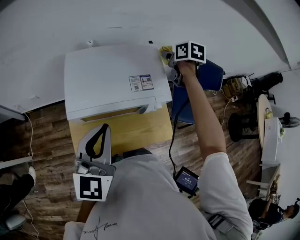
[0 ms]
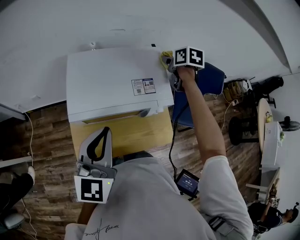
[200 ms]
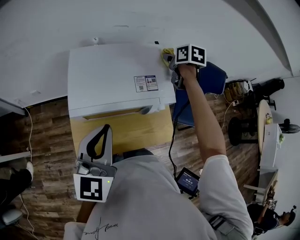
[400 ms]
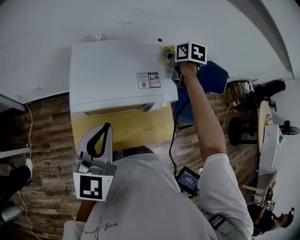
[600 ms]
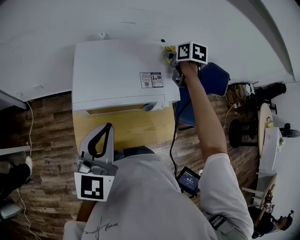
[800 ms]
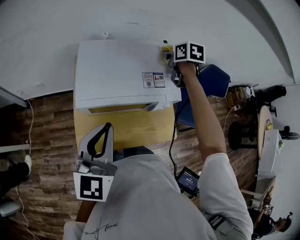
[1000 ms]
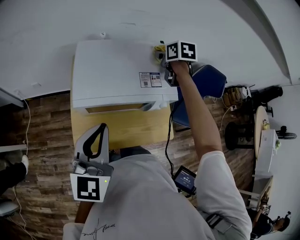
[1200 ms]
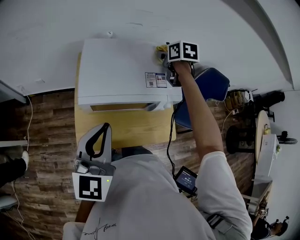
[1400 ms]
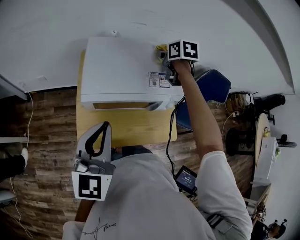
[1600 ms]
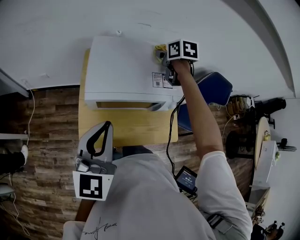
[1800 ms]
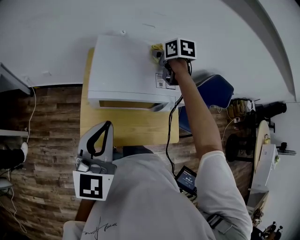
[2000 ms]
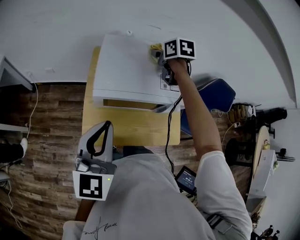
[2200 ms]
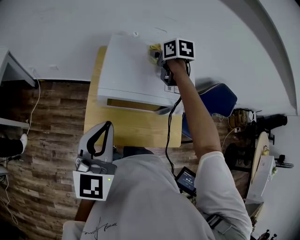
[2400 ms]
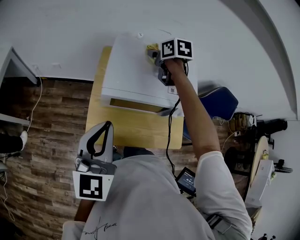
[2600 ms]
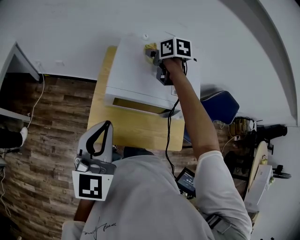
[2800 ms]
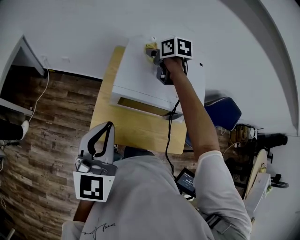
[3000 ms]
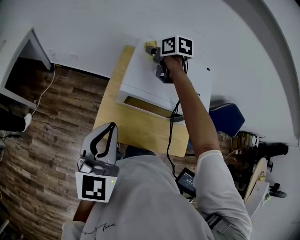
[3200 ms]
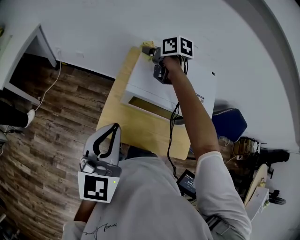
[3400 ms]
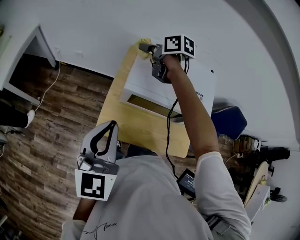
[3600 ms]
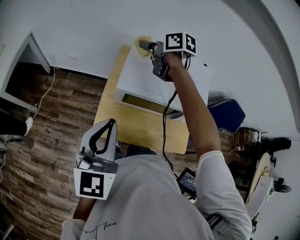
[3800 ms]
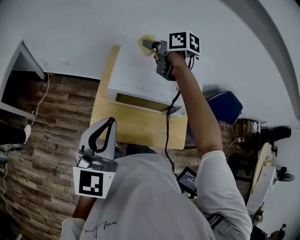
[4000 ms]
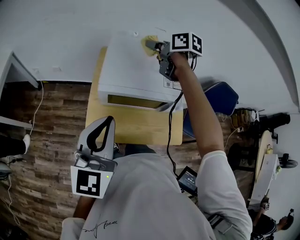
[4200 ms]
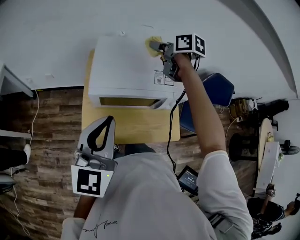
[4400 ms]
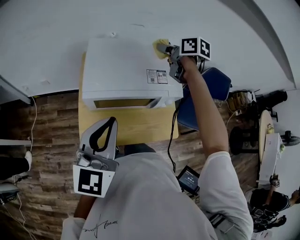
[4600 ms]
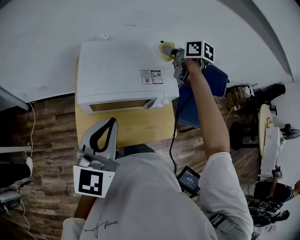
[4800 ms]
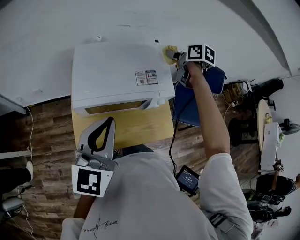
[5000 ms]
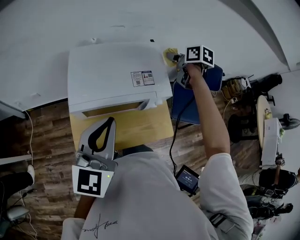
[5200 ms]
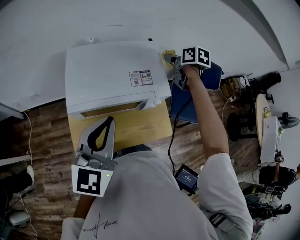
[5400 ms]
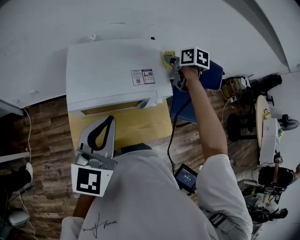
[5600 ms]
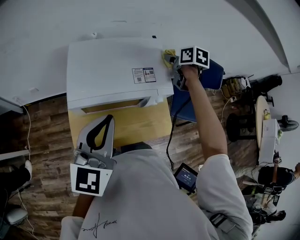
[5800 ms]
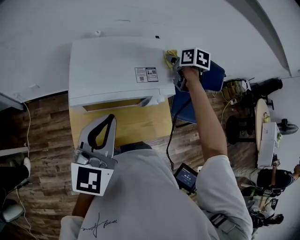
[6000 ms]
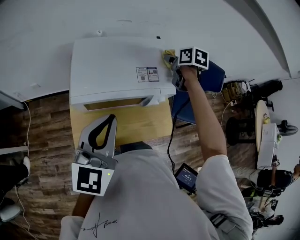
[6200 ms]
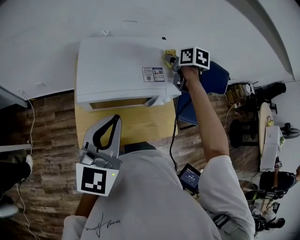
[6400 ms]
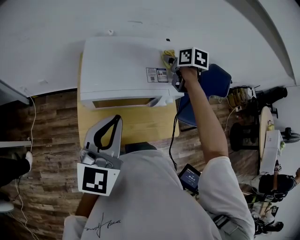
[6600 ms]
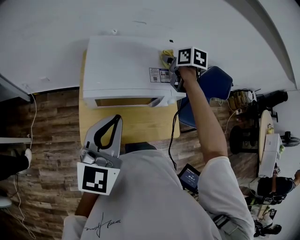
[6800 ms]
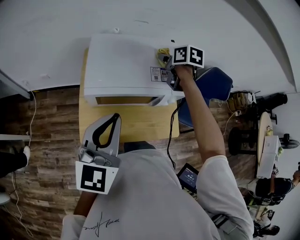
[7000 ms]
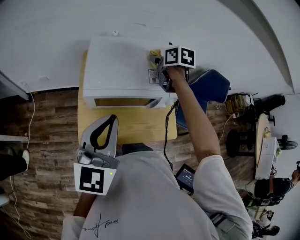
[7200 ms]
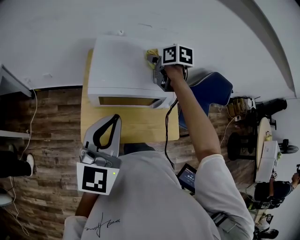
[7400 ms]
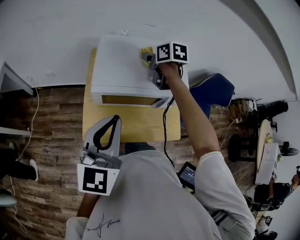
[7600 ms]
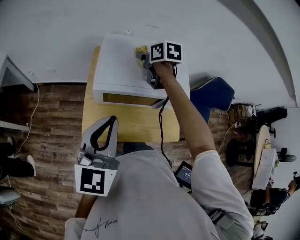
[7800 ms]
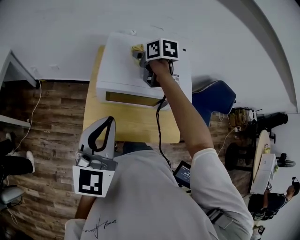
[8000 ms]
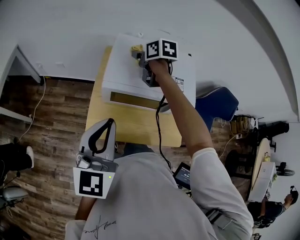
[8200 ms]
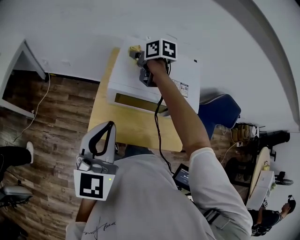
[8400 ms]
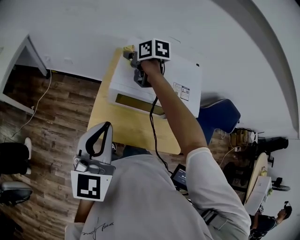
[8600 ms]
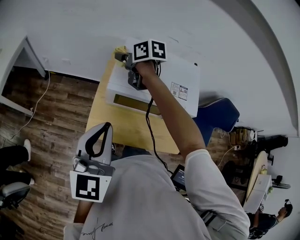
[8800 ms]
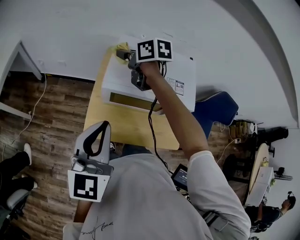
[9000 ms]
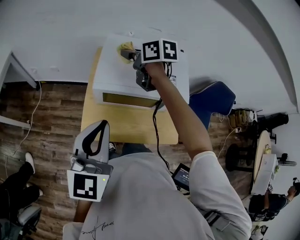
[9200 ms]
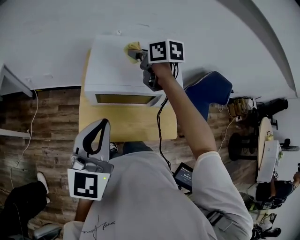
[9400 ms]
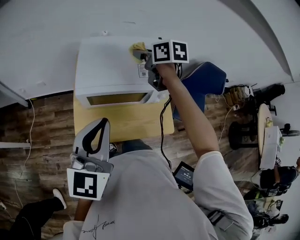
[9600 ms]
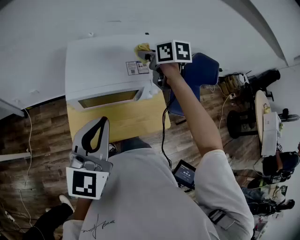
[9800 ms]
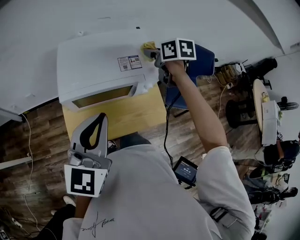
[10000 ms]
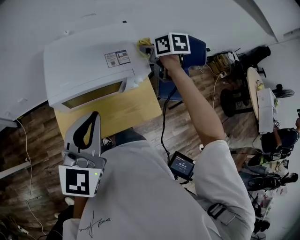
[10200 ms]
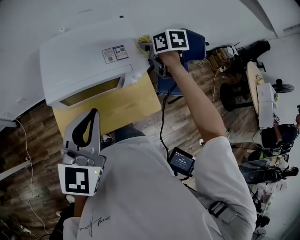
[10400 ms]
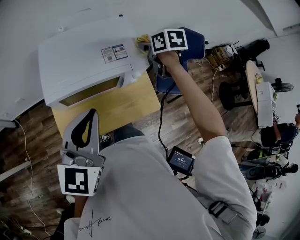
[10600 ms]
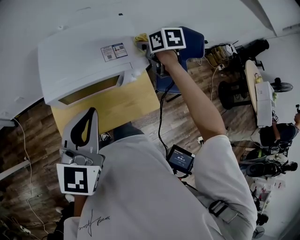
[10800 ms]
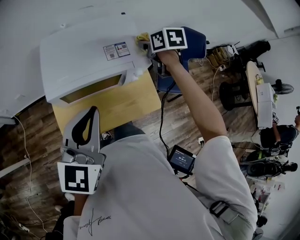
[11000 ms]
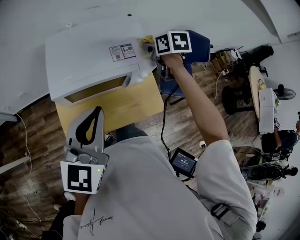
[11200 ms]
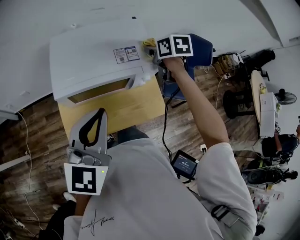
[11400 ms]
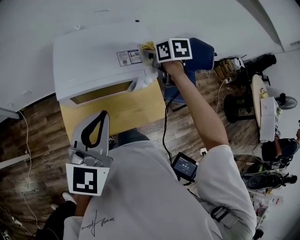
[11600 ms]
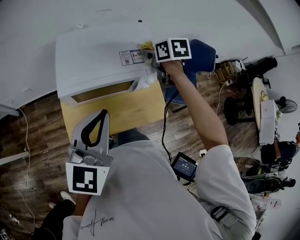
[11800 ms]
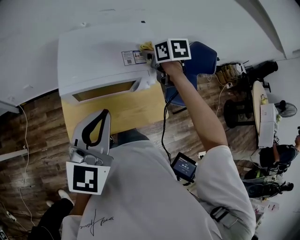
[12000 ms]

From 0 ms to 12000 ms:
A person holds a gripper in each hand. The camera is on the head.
From 0 ms to 1600 ms: The right gripper shifts roughly 10 cm to the left, while the left gripper goes approximately 5 cm to the left.
From 1600 ms to 3000 ms: The left gripper heads to the left, covering some 10 cm; the right gripper is displaced to the left by approximately 20 cm, and swivels approximately 20 degrees.
From 3000 ms to 4400 ms: The right gripper is displaced to the right, backward and upward by some 15 cm, while the left gripper shifts roughly 5 cm to the right.
From 4400 ms to 6000 ms: The left gripper goes some 5 cm to the right; the right gripper travels to the right by approximately 20 cm, and rotates approximately 30 degrees.
From 6000 ms to 7600 ms: The right gripper travels to the left by some 25 cm. Meanwhile the left gripper travels to the left and backward by approximately 10 cm.
From 7600 ms to 9000 ms: The right gripper heads to the left, covering roughly 20 cm, and changes its angle by approximately 20 degrees, while the left gripper travels to the left by about 5 cm.
From 9000 ms to 10400 ms: The right gripper changes place by roughly 40 cm, and turns by about 40 degrees; the left gripper shifts by some 15 cm, and changes its angle by approximately 30 degrees.
From 10400 ms to 12000 ms: The right gripper moves to the left, about 5 cm.

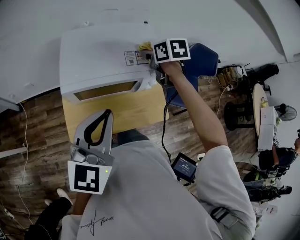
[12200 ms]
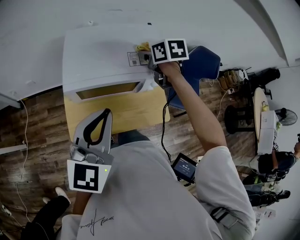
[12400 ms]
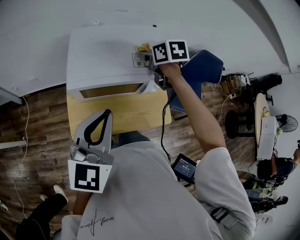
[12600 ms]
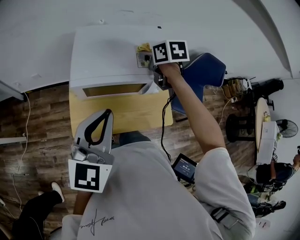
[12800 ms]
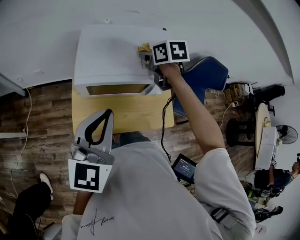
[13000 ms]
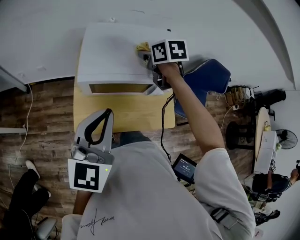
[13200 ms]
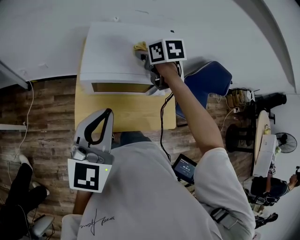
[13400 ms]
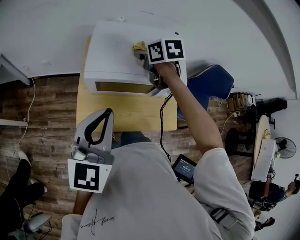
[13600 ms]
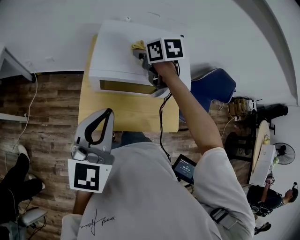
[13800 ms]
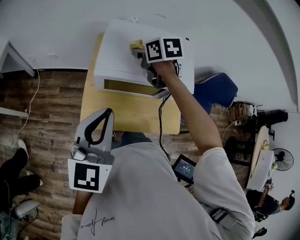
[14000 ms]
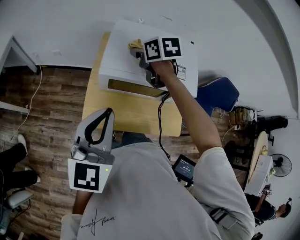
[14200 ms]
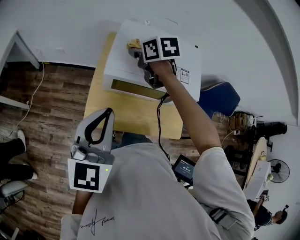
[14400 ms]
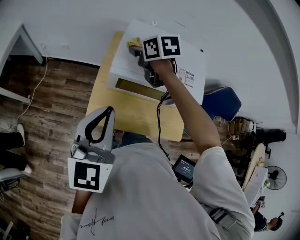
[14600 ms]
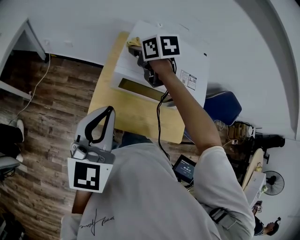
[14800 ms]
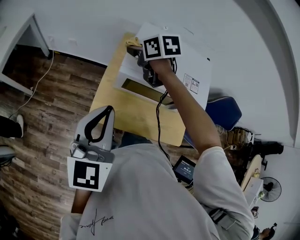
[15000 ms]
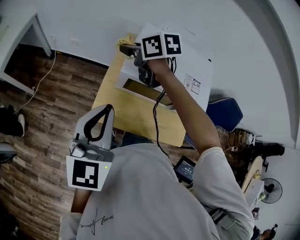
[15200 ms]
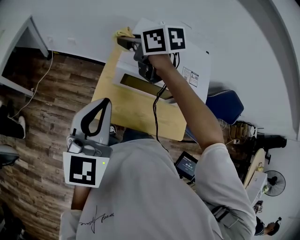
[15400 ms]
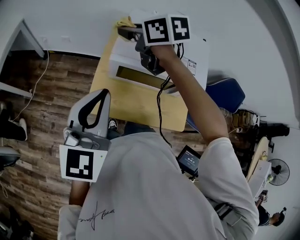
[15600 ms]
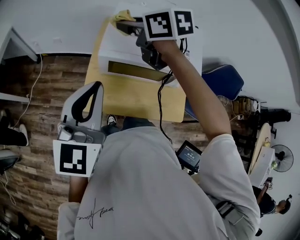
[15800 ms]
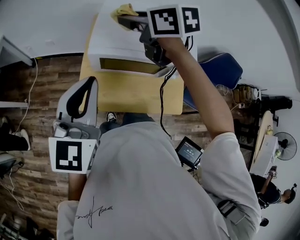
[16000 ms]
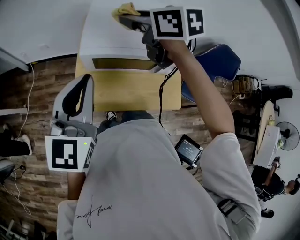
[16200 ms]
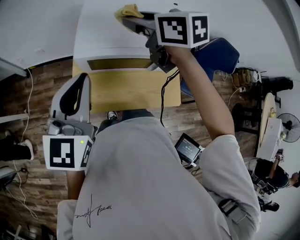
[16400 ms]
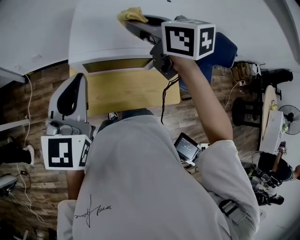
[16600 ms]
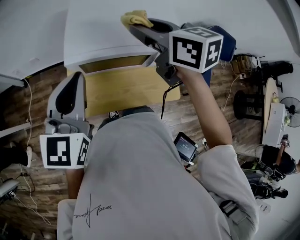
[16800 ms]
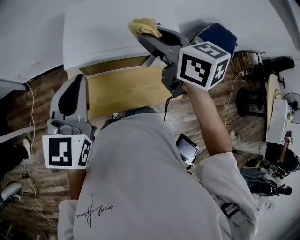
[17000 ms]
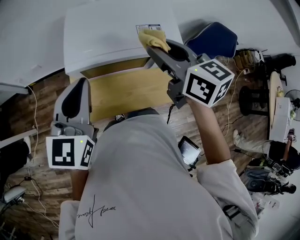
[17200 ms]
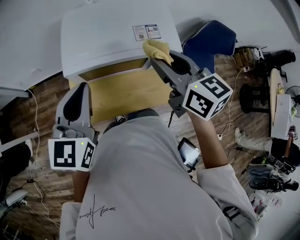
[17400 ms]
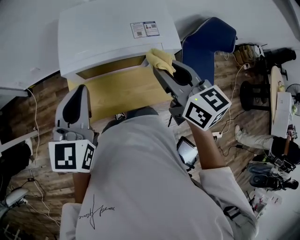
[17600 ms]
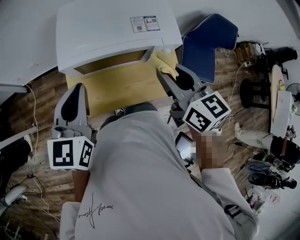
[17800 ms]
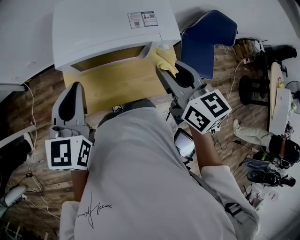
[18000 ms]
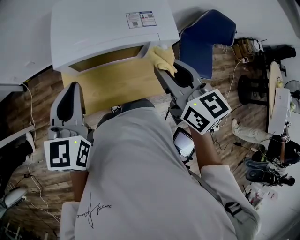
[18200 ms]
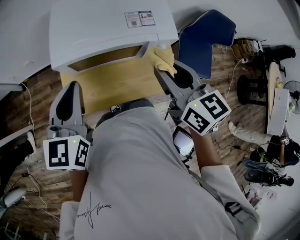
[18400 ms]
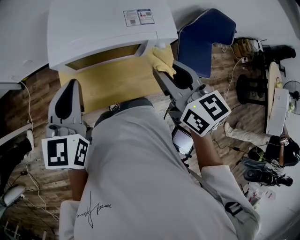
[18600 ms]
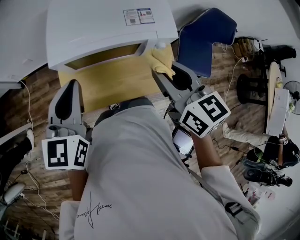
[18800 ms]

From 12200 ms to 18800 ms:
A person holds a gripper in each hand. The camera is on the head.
From 12200 ms to 13800 ms: The left gripper moves to the left, some 5 cm. The right gripper heads to the left, covering approximately 20 cm.
From 13800 ms to 15400 ms: The left gripper moves to the left, some 10 cm. Meanwhile the right gripper moves to the left, some 20 cm, and turns by some 30 degrees.
From 15400 ms to 17200 ms: The right gripper ends up approximately 30 cm from where it was, and turns by some 40 degrees, while the left gripper moves about 10 cm, and swivels roughly 20 degrees.
From 17200 ms to 18800 ms: The right gripper goes approximately 10 cm backward and downward.

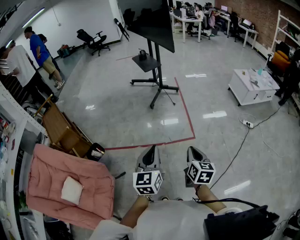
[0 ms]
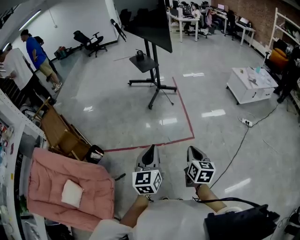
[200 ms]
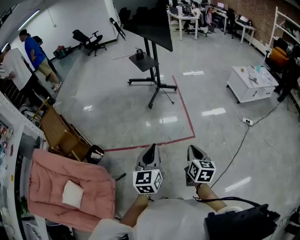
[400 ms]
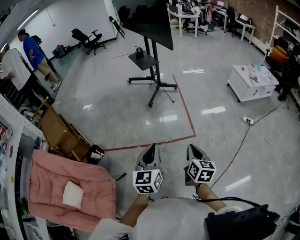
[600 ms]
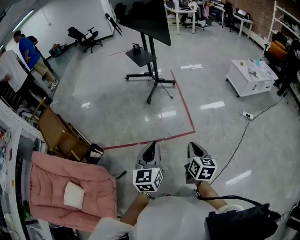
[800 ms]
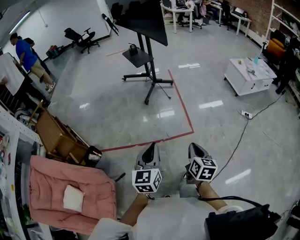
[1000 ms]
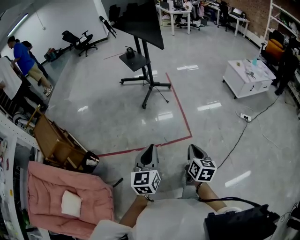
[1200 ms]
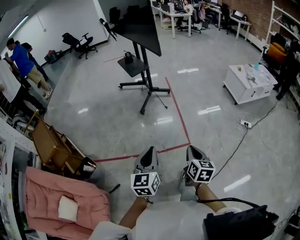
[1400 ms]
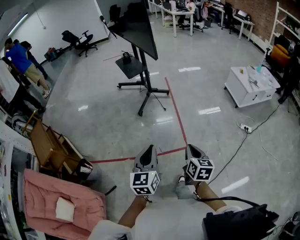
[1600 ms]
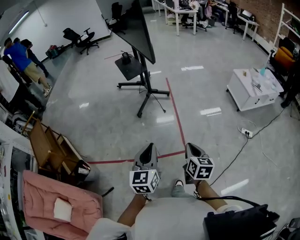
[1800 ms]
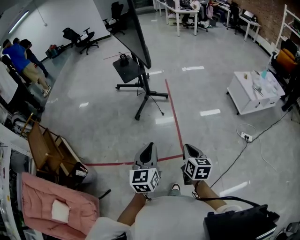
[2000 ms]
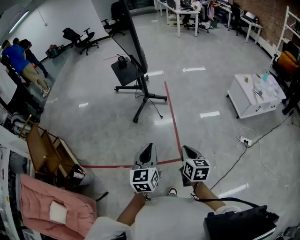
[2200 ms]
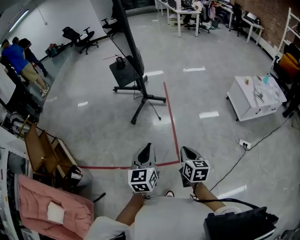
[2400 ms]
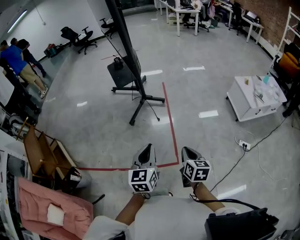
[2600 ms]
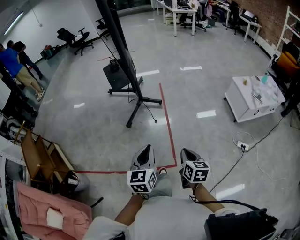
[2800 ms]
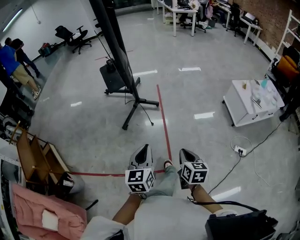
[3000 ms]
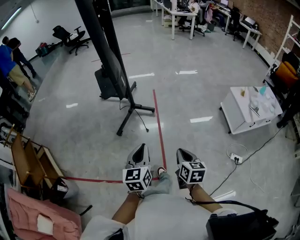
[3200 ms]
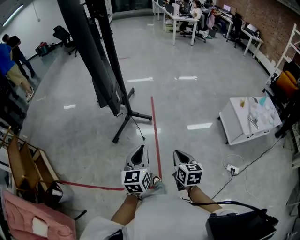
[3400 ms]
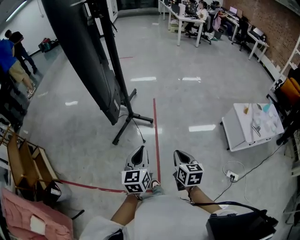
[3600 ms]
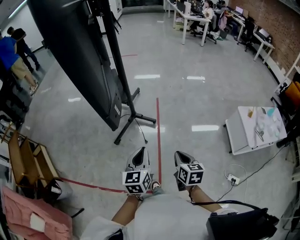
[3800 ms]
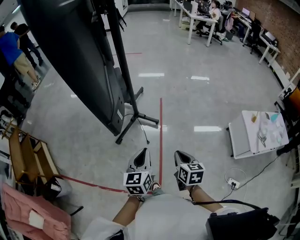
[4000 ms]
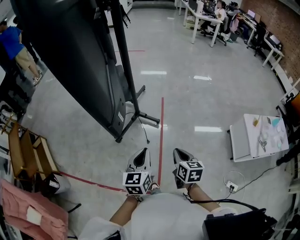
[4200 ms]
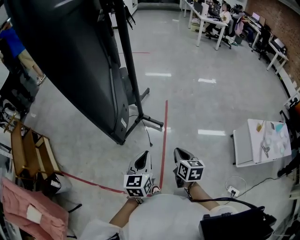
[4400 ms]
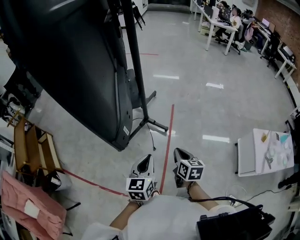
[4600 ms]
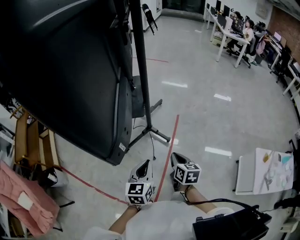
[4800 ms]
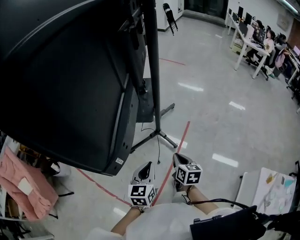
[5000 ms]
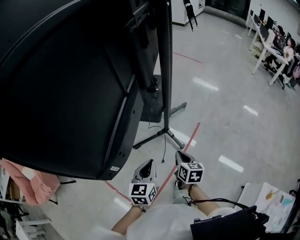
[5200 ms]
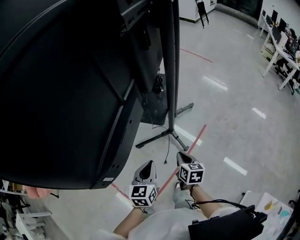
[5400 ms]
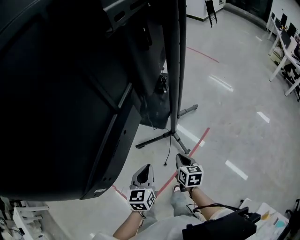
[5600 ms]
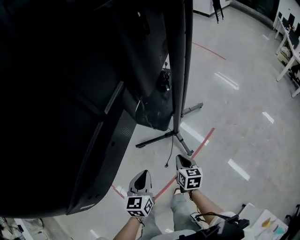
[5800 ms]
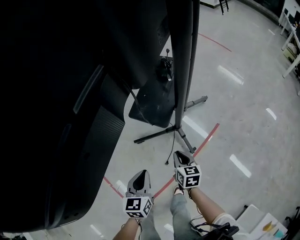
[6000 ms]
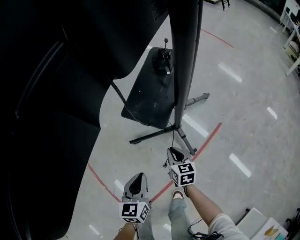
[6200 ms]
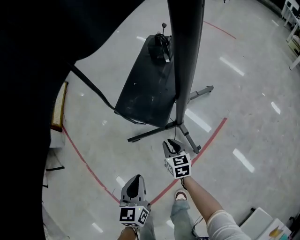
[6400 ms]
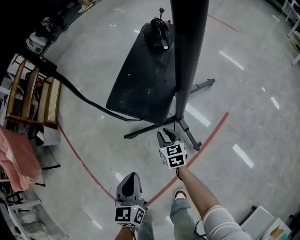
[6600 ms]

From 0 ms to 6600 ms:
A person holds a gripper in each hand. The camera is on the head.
From 0 ms to 1600 ms: The two grippers go roughly 25 cm forward.
From 1600 ms to 3200 ms: The grippers both shift forward and to the right by roughly 40 cm.
From 3200 ms to 5000 ms: The left gripper changes place by roughly 35 cm, and swivels approximately 30 degrees. Meanwhile the right gripper changes place by about 50 cm, and turns by approximately 30 degrees.
From 5000 ms to 6600 ms: The grippers both shift downward by about 35 cm. The left gripper turns by approximately 30 degrees; the right gripper swivels roughly 30 degrees.
